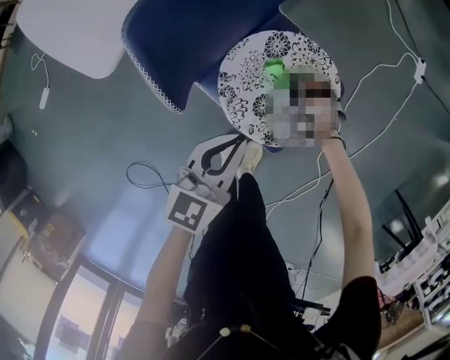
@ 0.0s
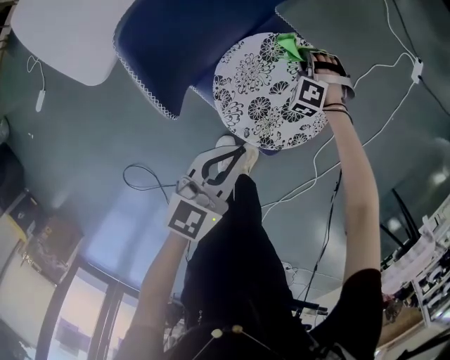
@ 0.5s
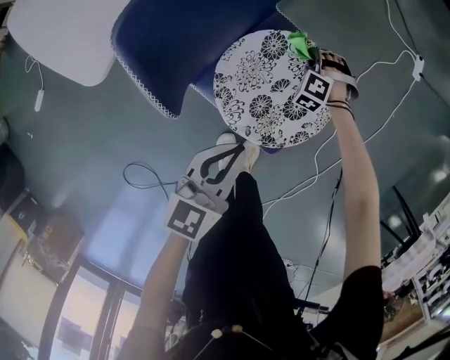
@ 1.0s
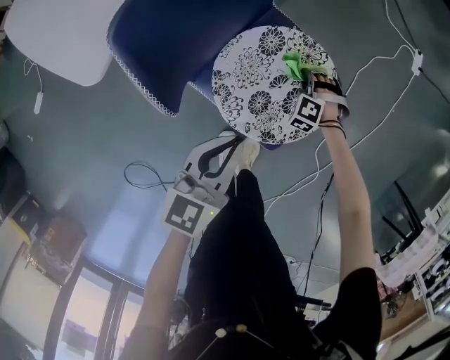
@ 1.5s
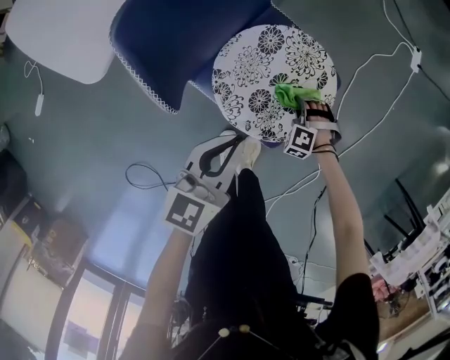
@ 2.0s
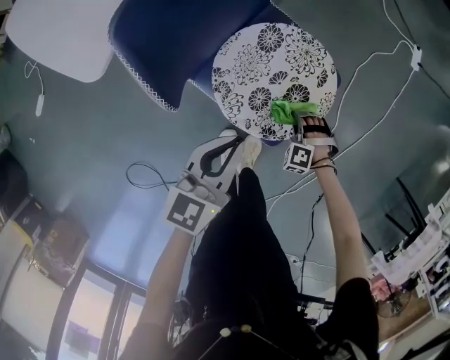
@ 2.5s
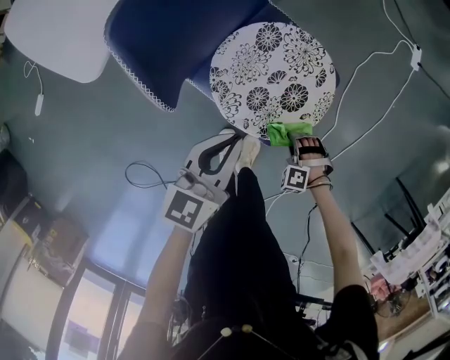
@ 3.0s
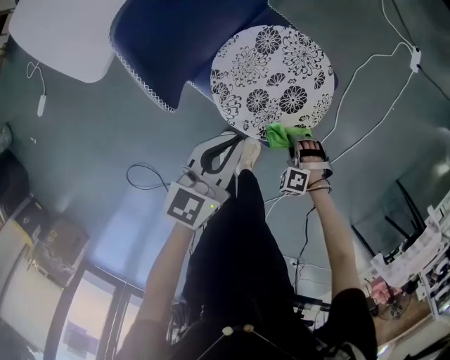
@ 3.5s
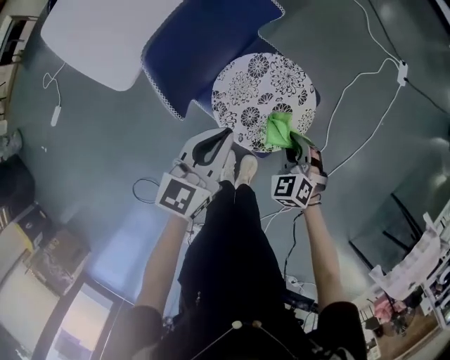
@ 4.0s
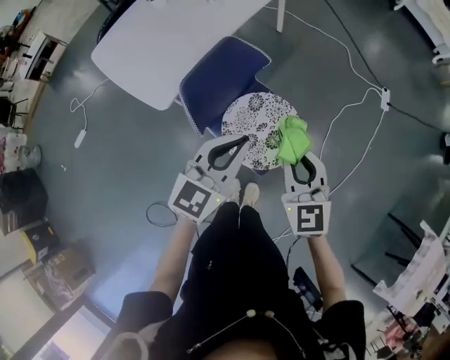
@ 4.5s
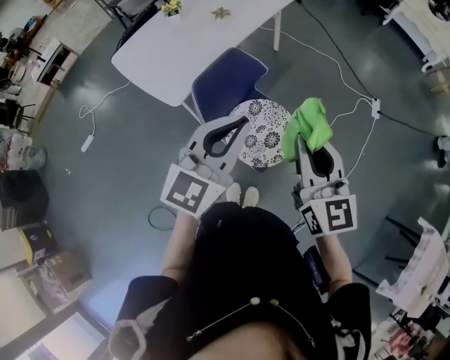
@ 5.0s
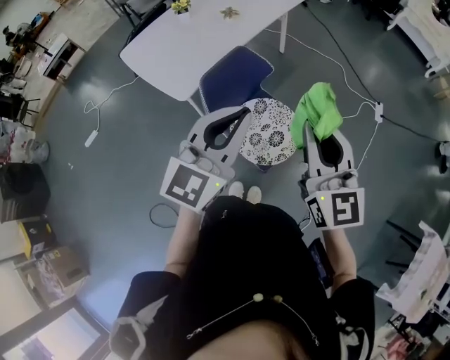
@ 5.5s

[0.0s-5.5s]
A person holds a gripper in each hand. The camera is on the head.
0.0s to 2.0s: The right gripper goes approximately 10 cm to the right and downward, and goes forward and returns, approximately 10 cm each way.
2.0s to 3.5s: The right gripper shifts about 10 cm backward.
3.5s to 5.5s: The left gripper is displaced upward by about 50 cm, and rotates about 40 degrees. The right gripper moves upward, some 70 cm, and angles its fingers upward, by some 70 degrees.

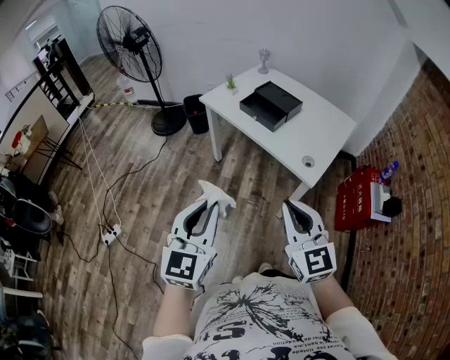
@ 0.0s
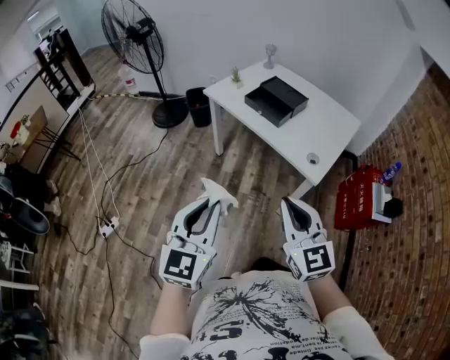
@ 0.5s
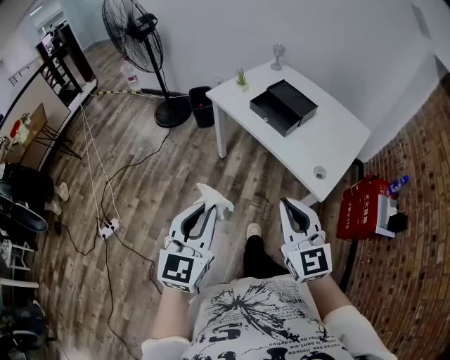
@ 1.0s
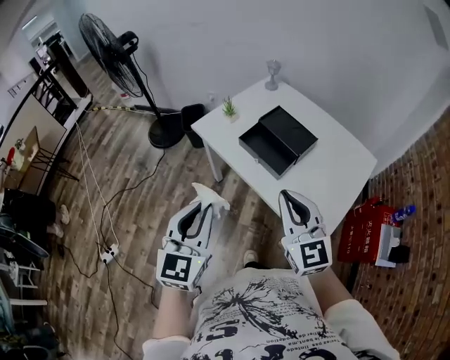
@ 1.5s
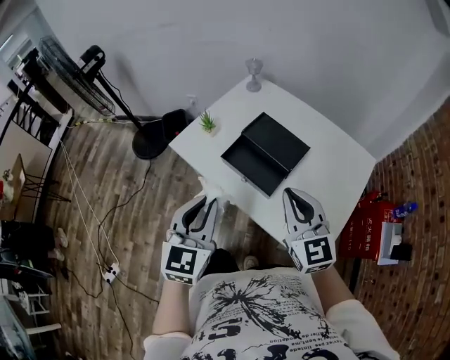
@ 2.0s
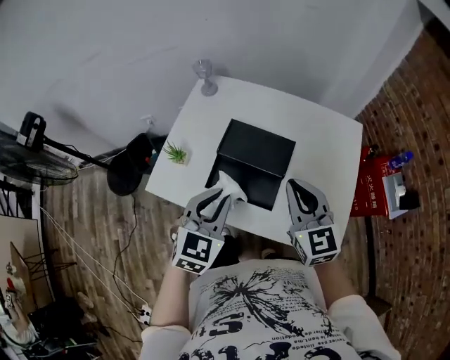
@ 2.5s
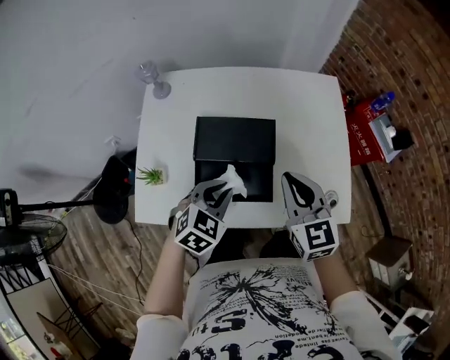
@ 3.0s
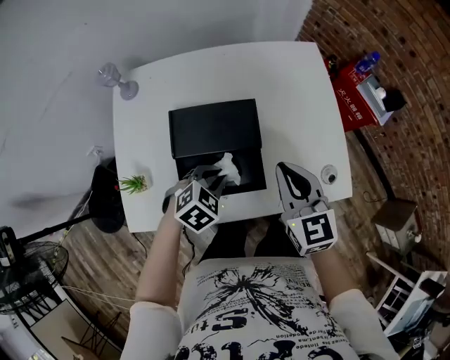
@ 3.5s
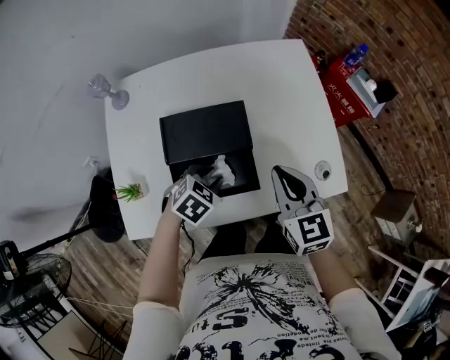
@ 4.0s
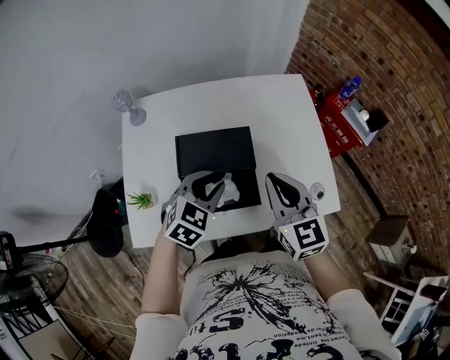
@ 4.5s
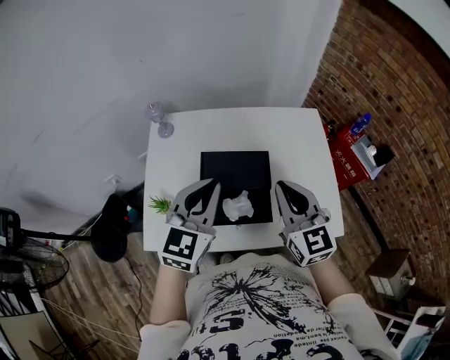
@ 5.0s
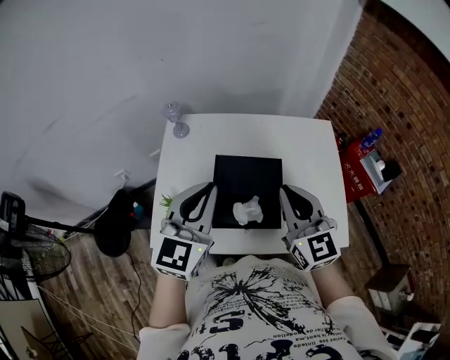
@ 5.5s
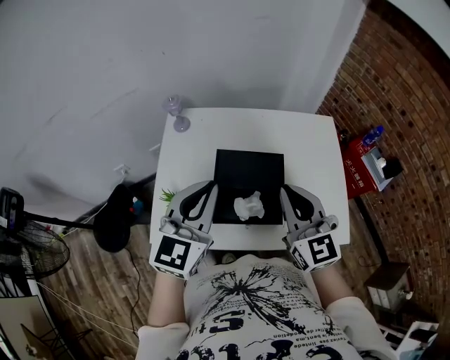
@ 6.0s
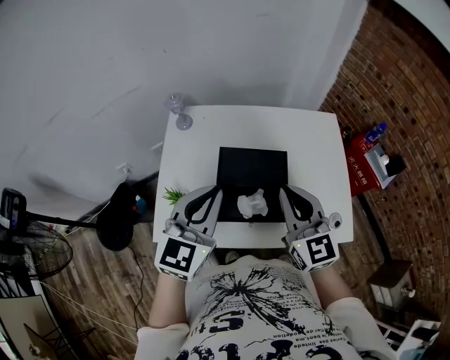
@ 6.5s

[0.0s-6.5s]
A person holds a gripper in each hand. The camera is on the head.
0.0s to 2.0s: Both grippers are carried forward, approximately 50 cm.
2.0s to 4.5s: The left gripper ends up approximately 30 cm from where it was, and turns by roughly 70 degrees. The right gripper ends up approximately 15 cm from where it was, and changes its angle by approximately 50 degrees.
4.5s to 6.5s: The right gripper goes some 10 cm to the left and upward; the left gripper shifts about 20 cm upward and to the left, angles its fingers upward, by roughly 30 degrees, and closes its fingers.

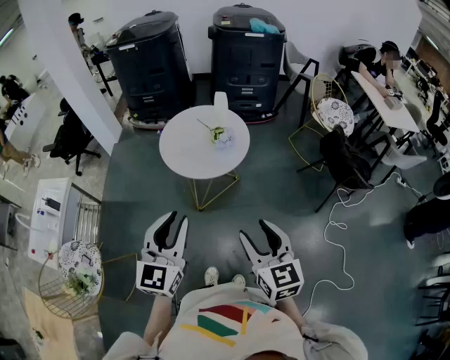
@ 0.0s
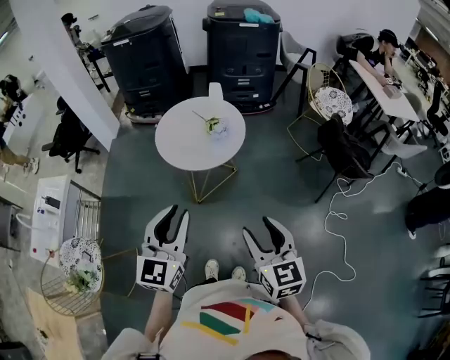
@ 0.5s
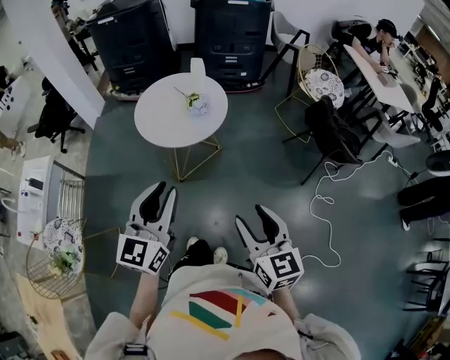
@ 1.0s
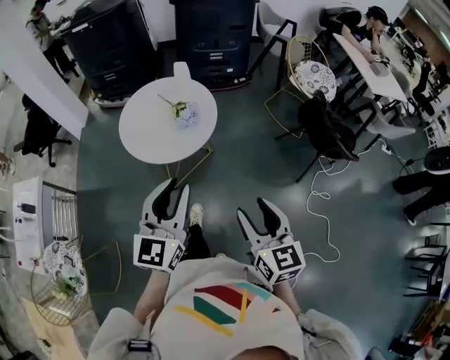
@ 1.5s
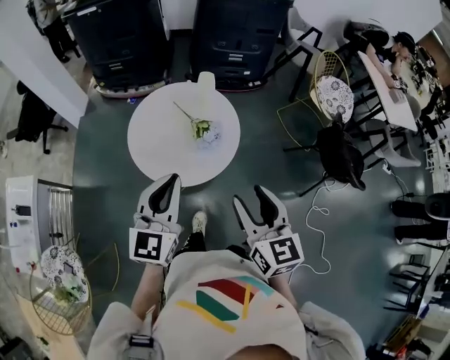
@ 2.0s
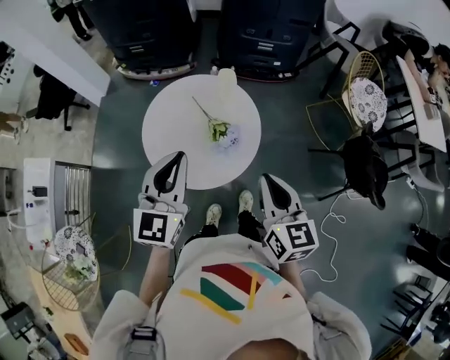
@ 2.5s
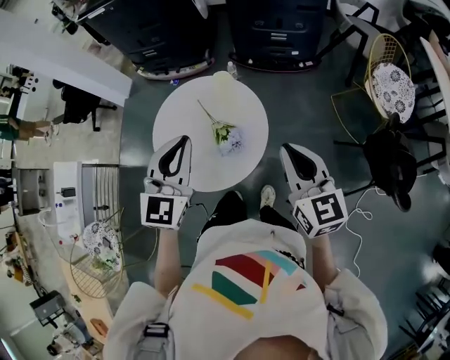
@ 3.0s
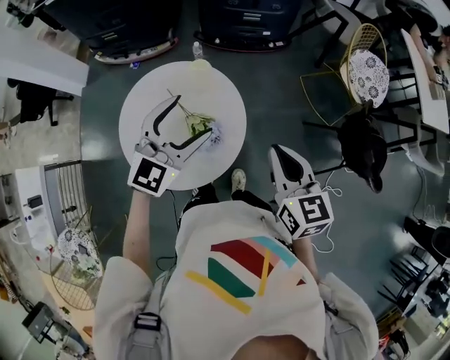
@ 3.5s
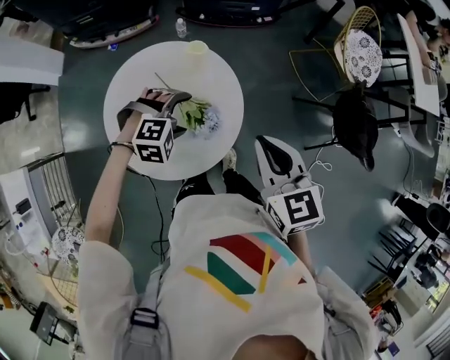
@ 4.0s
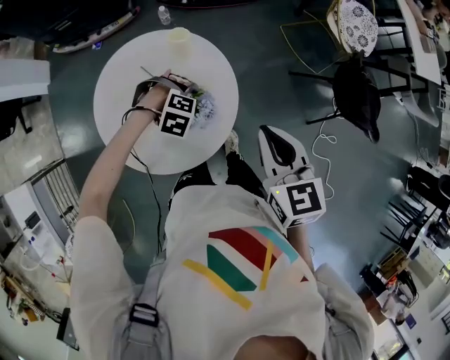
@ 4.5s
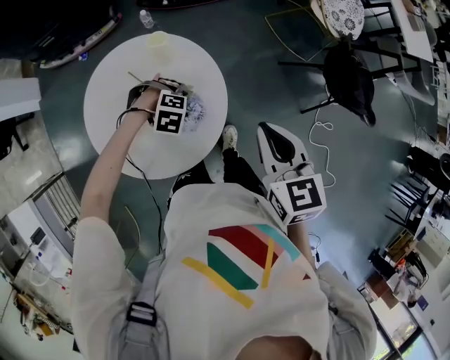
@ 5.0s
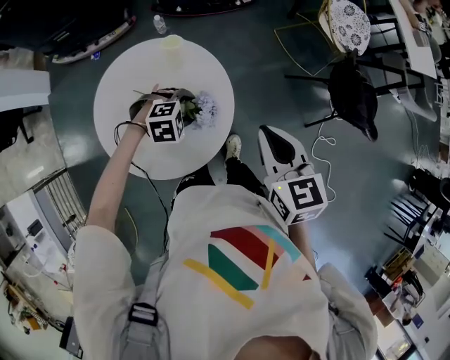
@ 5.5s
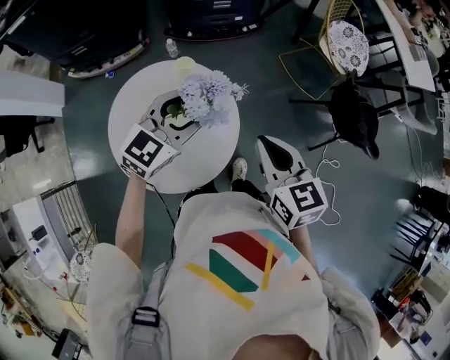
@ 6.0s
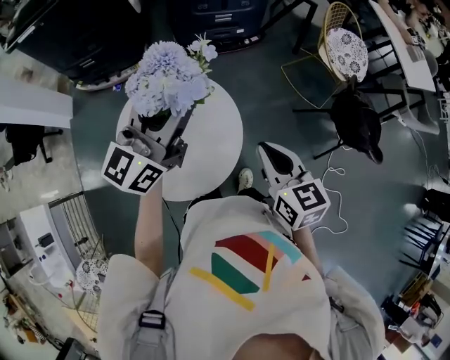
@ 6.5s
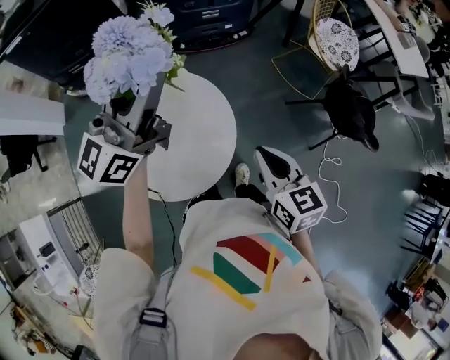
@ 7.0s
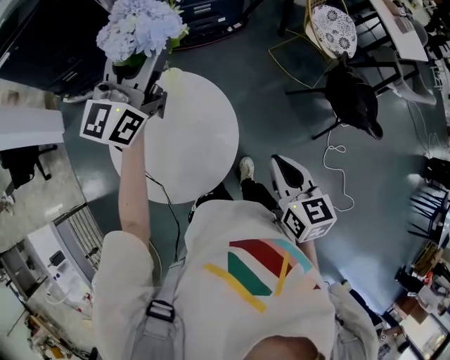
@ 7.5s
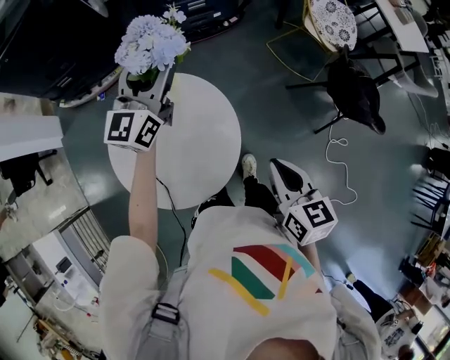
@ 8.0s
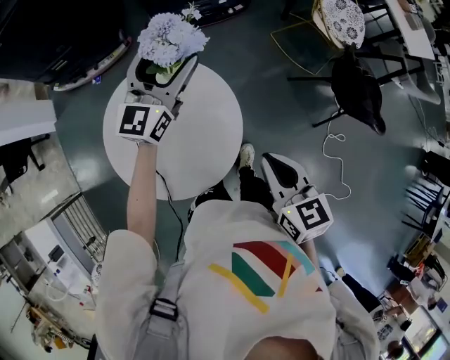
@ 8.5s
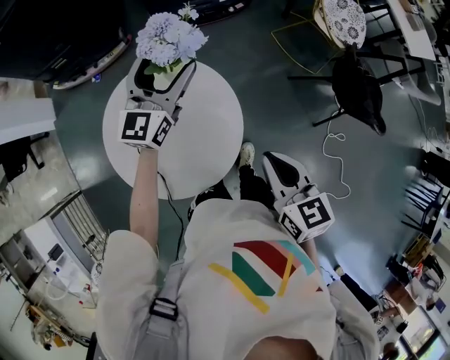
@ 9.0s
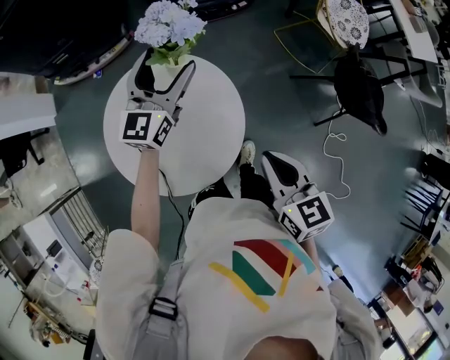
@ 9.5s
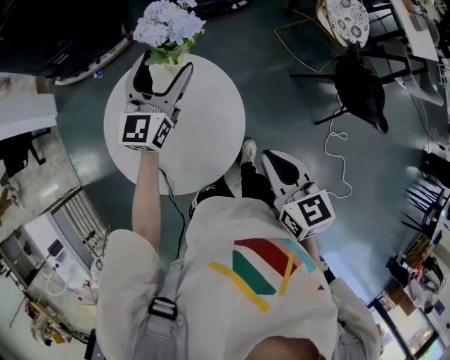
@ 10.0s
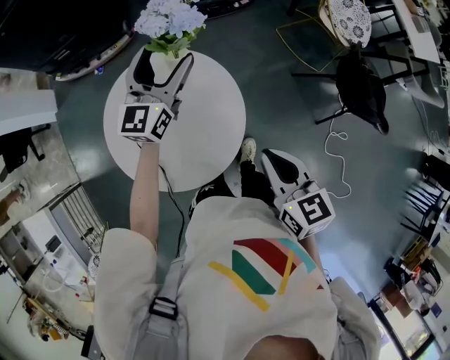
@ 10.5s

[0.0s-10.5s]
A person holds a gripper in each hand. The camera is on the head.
0.0s to 2.0s: Both grippers travel together forward, roughly 25 cm.
2.0s to 4.0s: The right gripper shifts by some 25 cm, and closes; the left gripper ends up roughly 35 cm from where it was, angles its fingers downward, by roughly 60 degrees, and opens its fingers.
4.0s to 6.5s: The left gripper goes roughly 30 cm upward, tips its fingers upward by some 80 degrees, and closes up.
6.5s to 8.5s: The left gripper moves forward and downward, about 20 cm, and opens its fingers.
8.5s to 10.5s: There are only small adjustments of the grippers.

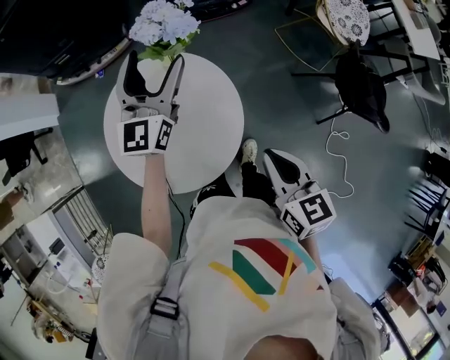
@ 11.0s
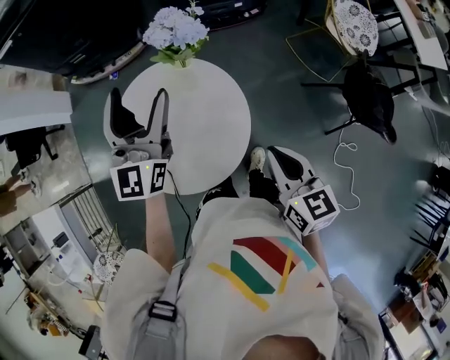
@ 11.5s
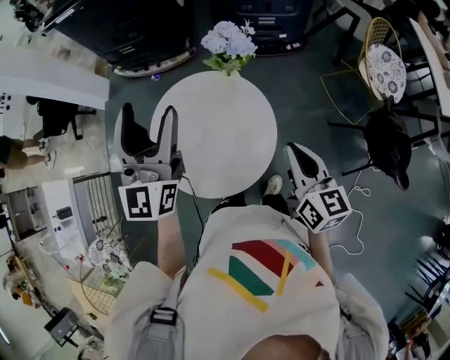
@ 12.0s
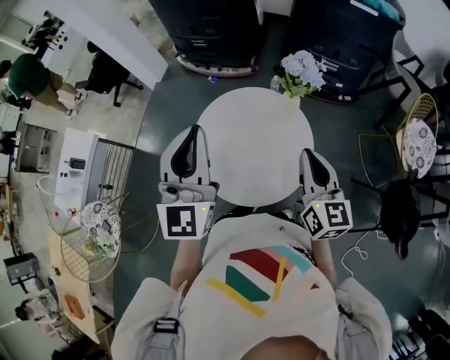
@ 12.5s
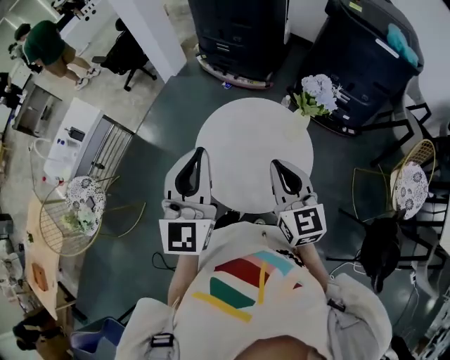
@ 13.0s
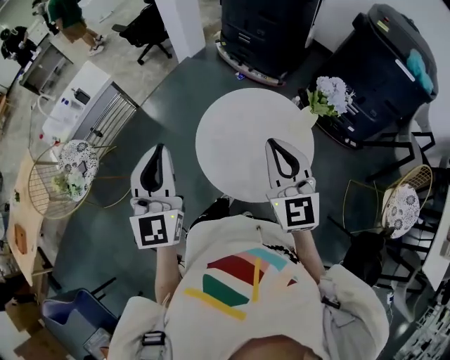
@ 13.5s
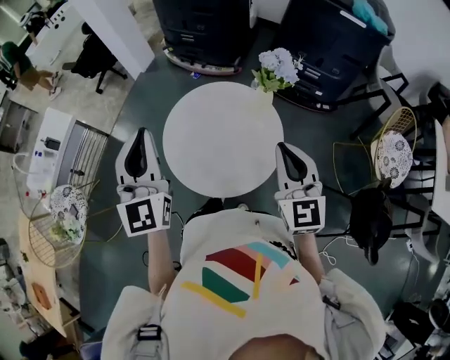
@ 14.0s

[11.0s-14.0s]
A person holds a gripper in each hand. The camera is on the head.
11.0s to 12.5s: The left gripper travels backward, to the left and upward by some 30 cm, turns by some 40 degrees, and closes its fingers. Meanwhile the right gripper moves forward, upward and to the left, roughly 15 cm, and swivels about 30 degrees.
12.5s to 14.0s: The right gripper turns by roughly 30 degrees.
